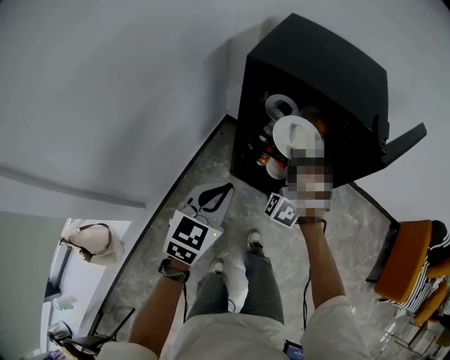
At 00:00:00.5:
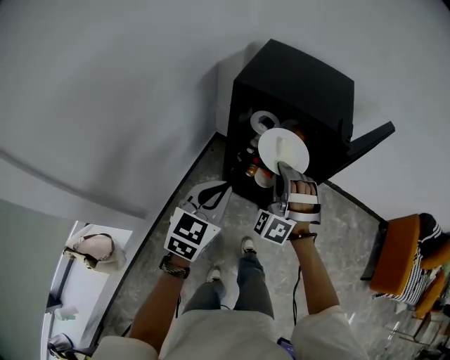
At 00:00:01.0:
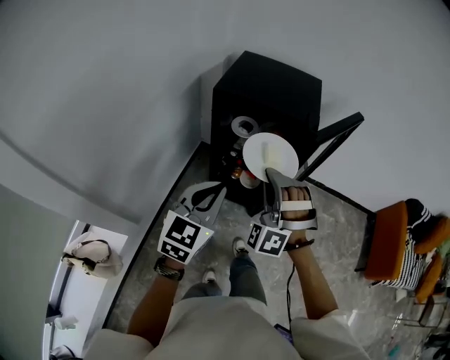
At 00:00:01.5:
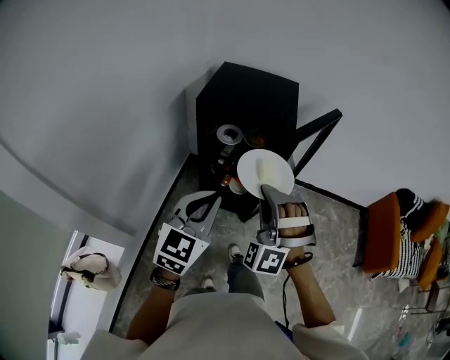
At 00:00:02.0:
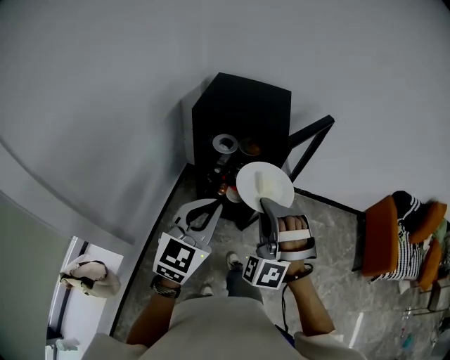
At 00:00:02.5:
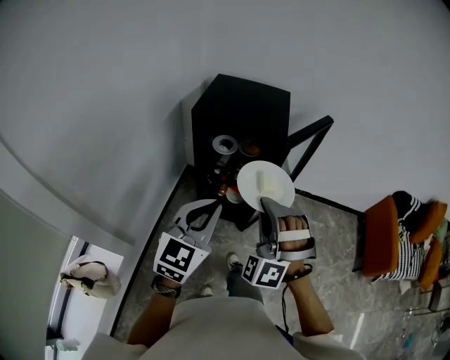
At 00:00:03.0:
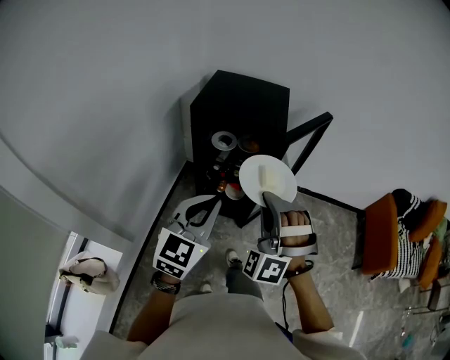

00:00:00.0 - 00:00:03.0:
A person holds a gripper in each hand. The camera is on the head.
00:00:00.0 - 00:00:01.5: The right gripper goes some 35 cm backward, upward and to the right. Meanwhile the left gripper moves upward, backward and to the right, approximately 25 cm.
00:00:01.5 - 00:00:03.0: There are only small adjustments of the grippers.

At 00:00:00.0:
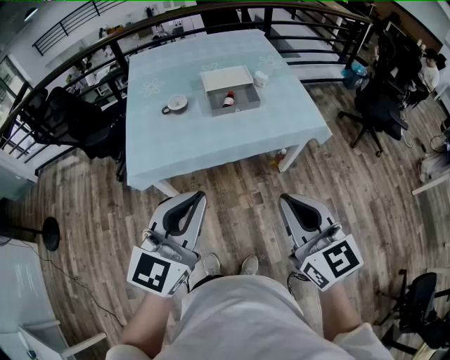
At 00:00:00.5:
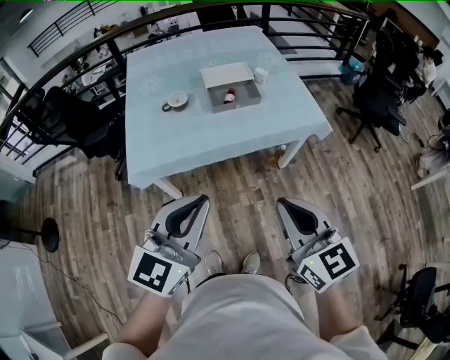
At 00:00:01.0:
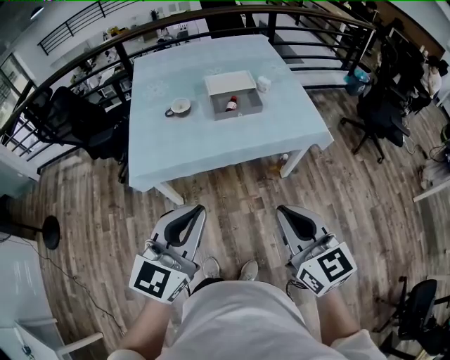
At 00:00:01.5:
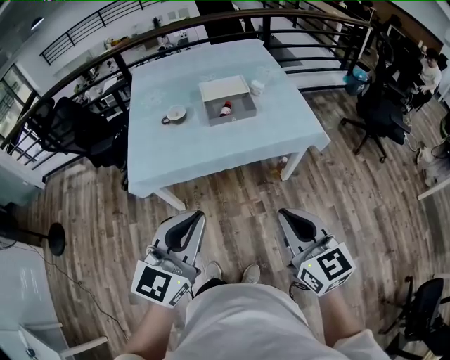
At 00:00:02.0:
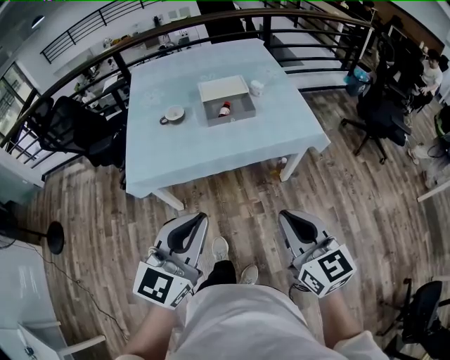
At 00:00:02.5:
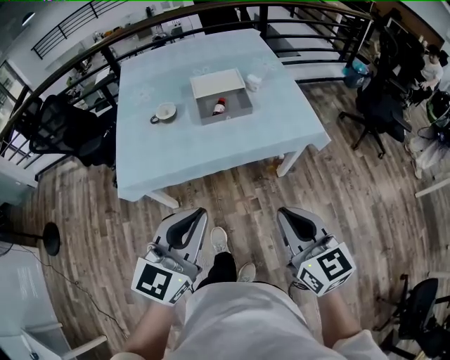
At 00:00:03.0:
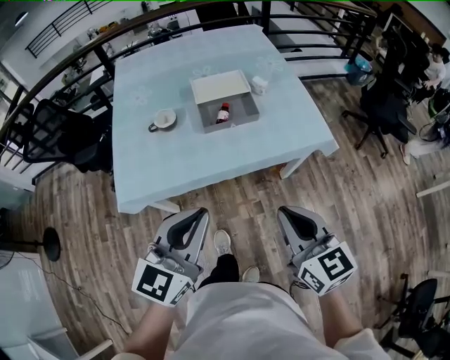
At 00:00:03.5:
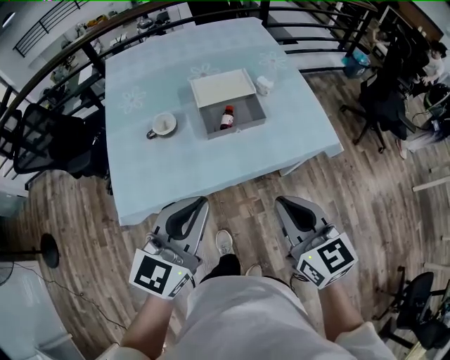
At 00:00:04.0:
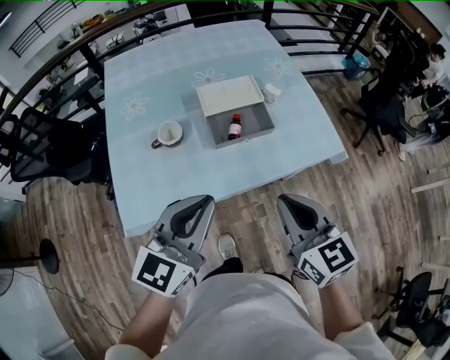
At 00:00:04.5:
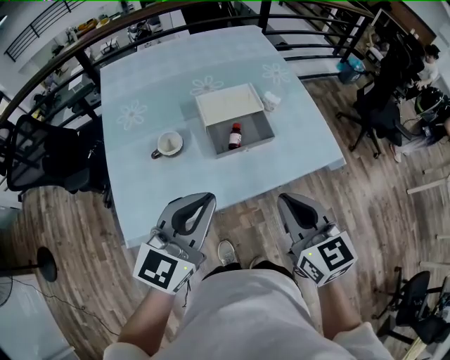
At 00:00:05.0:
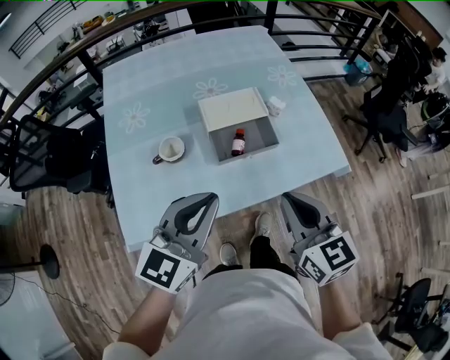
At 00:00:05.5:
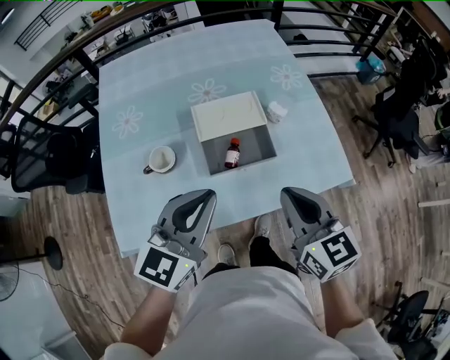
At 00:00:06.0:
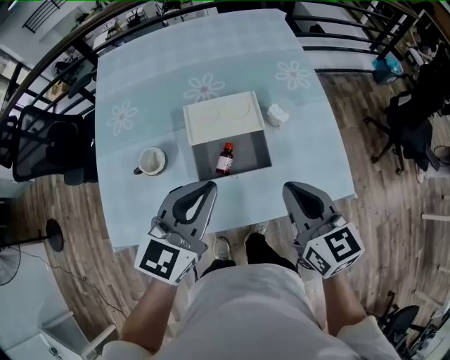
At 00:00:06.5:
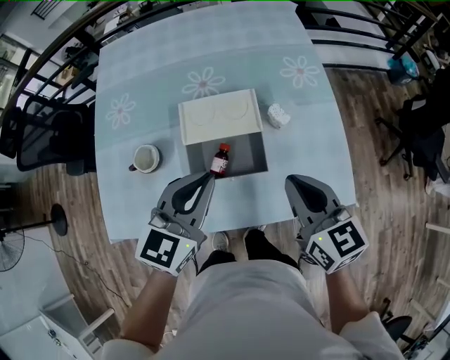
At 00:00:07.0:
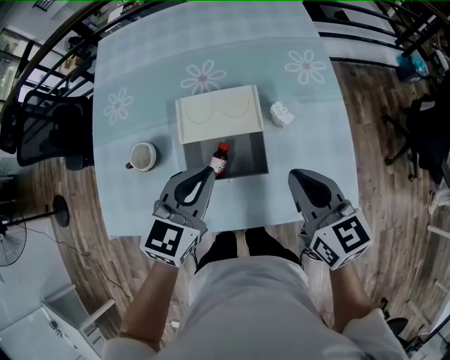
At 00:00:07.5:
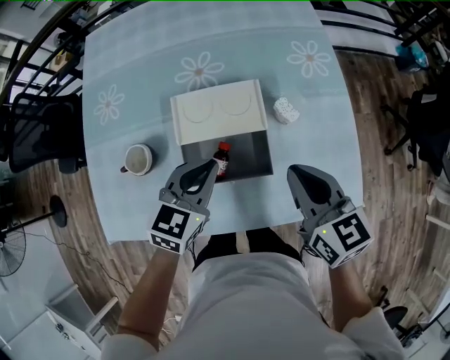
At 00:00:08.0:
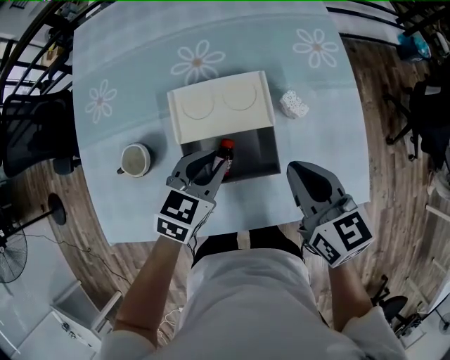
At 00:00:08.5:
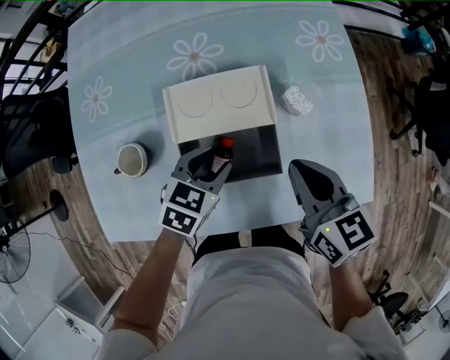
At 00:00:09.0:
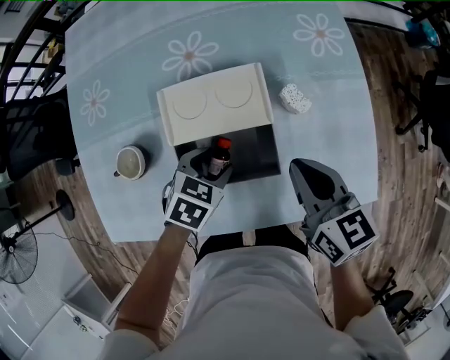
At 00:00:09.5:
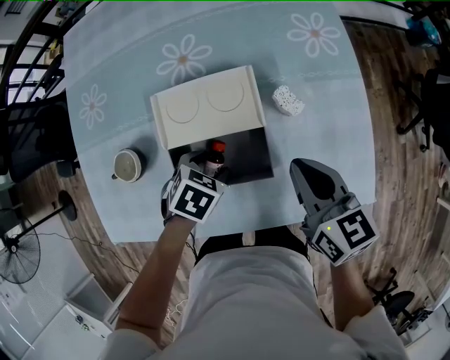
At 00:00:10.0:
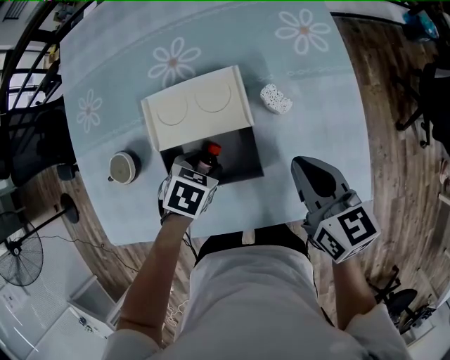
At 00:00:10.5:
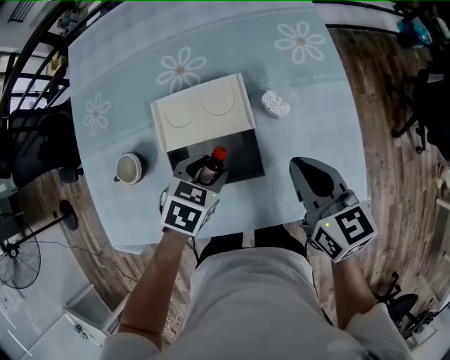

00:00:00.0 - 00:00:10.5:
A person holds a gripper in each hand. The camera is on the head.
00:00:00.0 - 00:00:02.0: The right gripper goes roughly 5 cm to the right. Meanwhile the left gripper shifts by some 5 cm.
00:00:02.0 - 00:00:04.0: The right gripper goes about 30 cm forward and to the left, while the left gripper goes some 30 cm forward.
00:00:04.0 - 00:00:06.5: Both grippers travel together forward and to the right, approximately 30 cm.
00:00:06.5 - 00:00:08.5: The left gripper goes approximately 20 cm downward, points its fingers some 30 degrees further downward, and opens, while the right gripper is displaced downward and forward by some 10 cm.
00:00:08.5 - 00:00:10.5: The right gripper moves about 5 cm.

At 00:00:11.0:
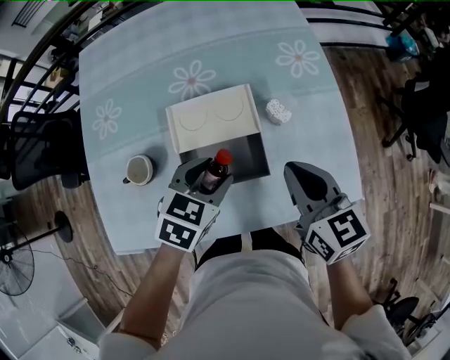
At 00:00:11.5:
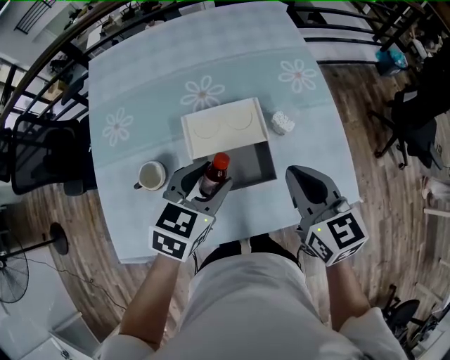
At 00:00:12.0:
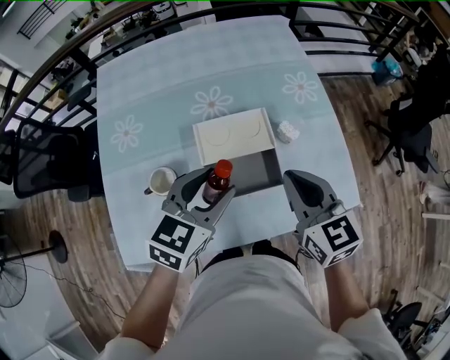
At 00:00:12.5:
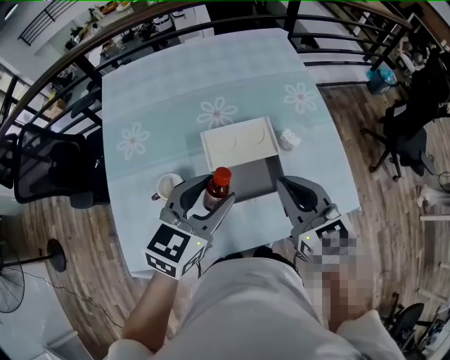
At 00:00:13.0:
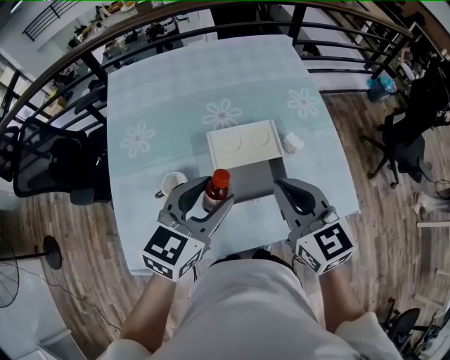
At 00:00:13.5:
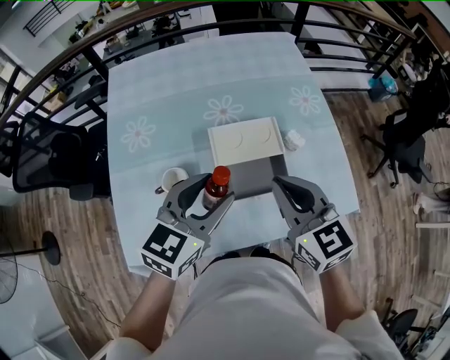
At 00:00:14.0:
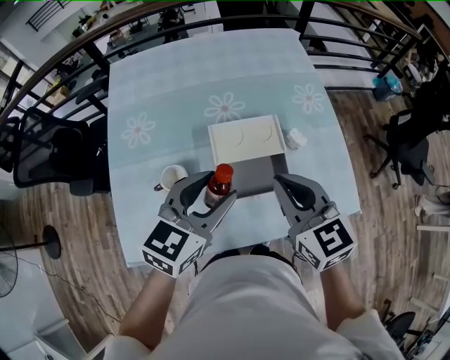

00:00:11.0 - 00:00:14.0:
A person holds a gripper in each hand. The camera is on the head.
00:00:11.0 - 00:00:12.5: The right gripper goes about 15 cm to the left and upward. Meanwhile the left gripper is displaced upward and to the left by about 15 cm, and rotates roughly 30 degrees.
00:00:12.5 - 00:00:14.0: The grippers move only a little.

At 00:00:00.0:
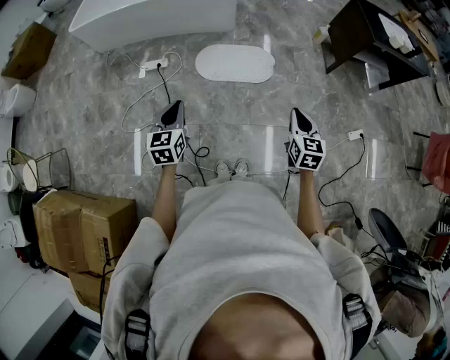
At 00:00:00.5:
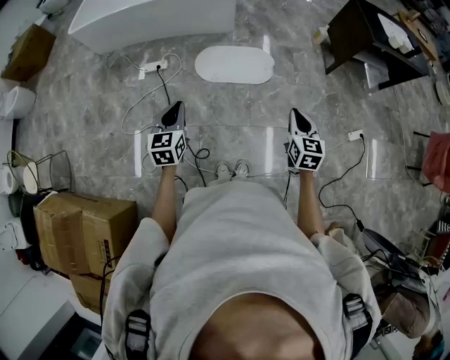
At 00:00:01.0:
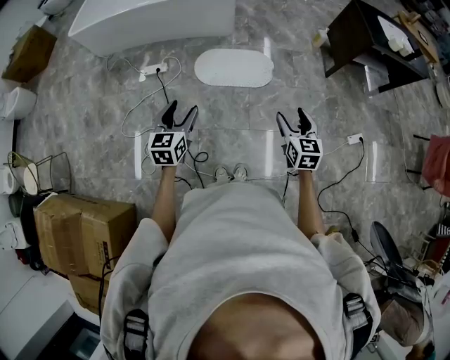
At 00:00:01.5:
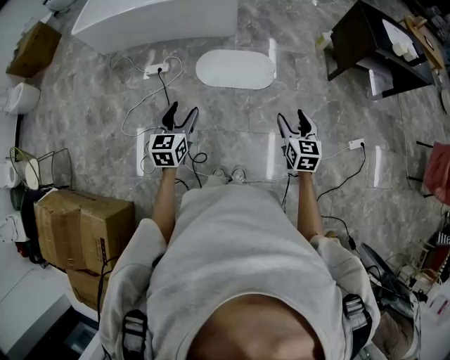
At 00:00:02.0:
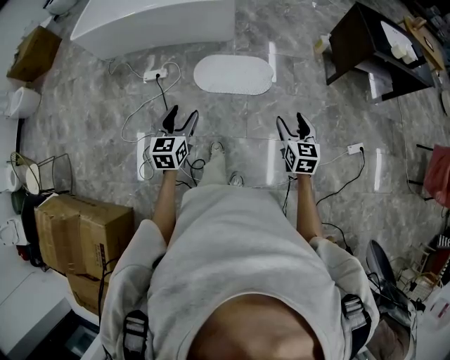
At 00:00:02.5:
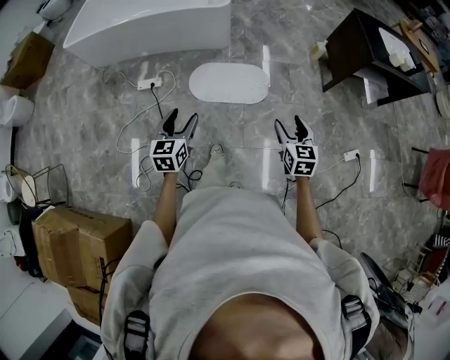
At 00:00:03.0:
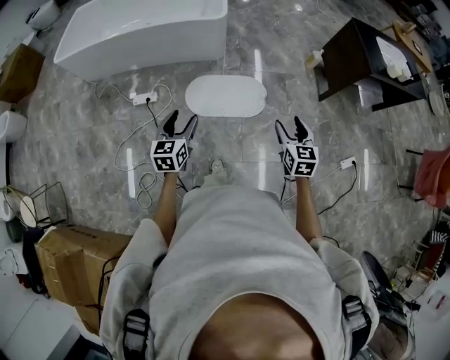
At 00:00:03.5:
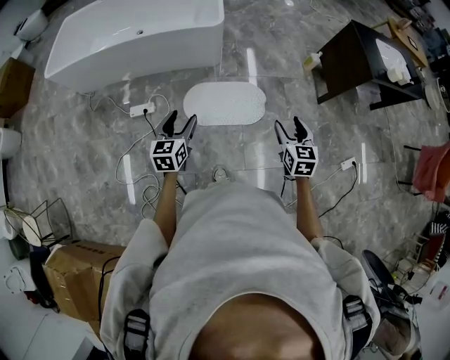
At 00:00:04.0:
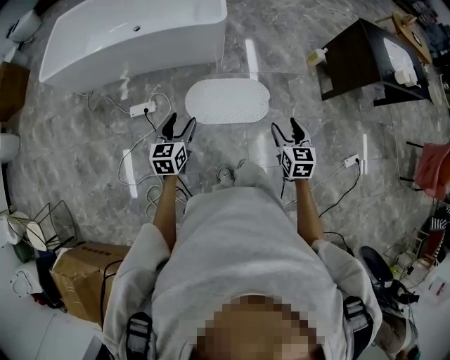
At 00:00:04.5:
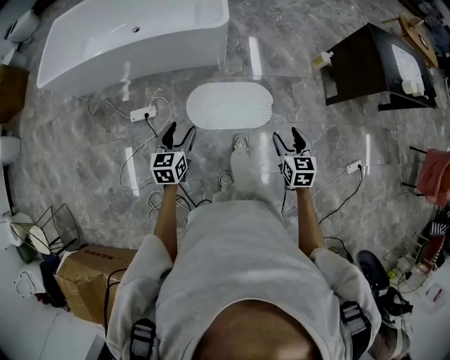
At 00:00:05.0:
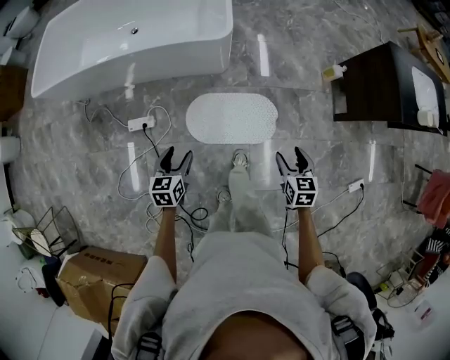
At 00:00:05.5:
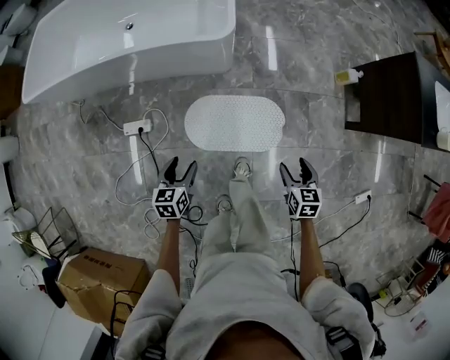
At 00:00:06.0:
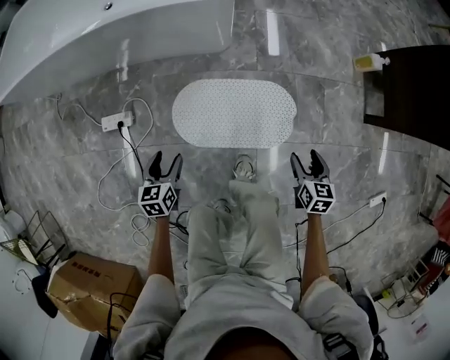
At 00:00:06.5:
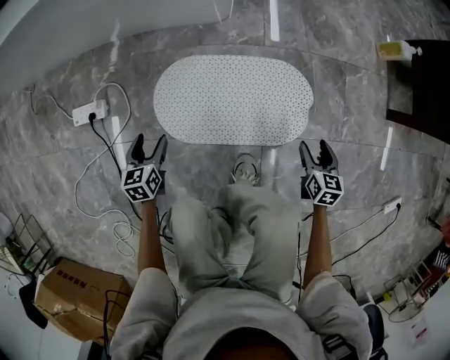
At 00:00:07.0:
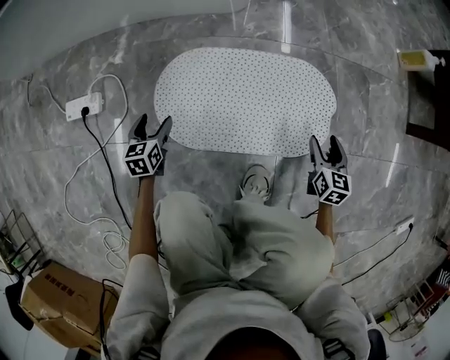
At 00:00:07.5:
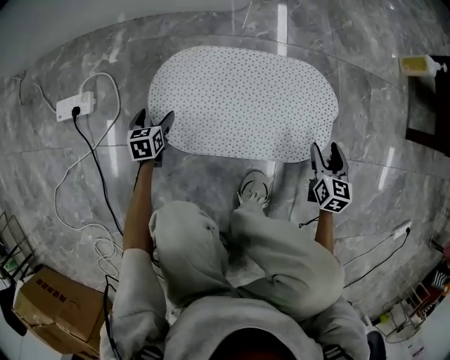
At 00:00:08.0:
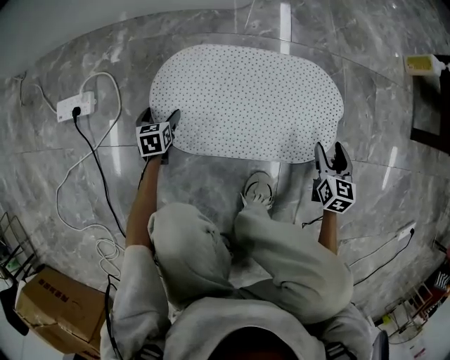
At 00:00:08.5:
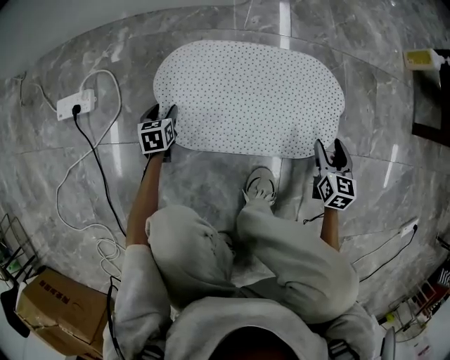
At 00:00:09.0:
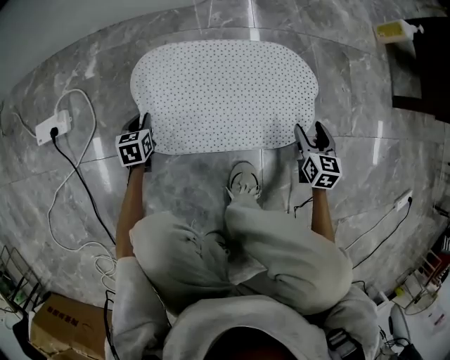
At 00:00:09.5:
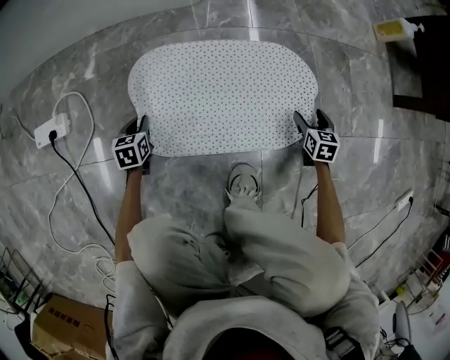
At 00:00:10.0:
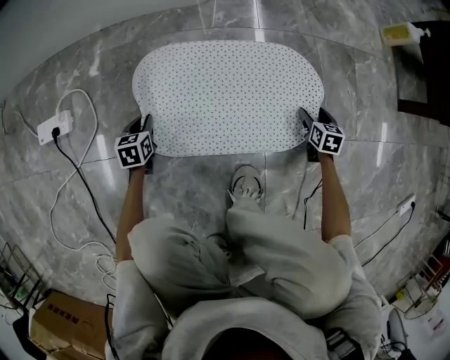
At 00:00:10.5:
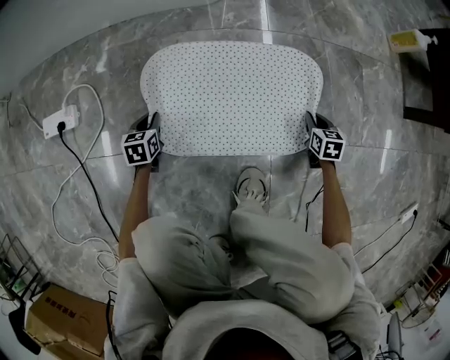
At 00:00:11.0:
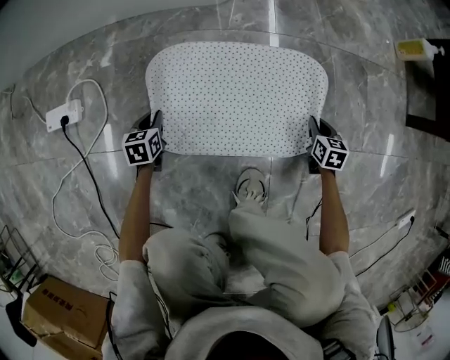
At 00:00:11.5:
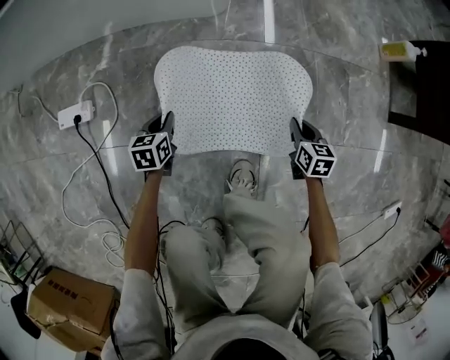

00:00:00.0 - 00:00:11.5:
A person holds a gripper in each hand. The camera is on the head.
00:00:00.0 - 00:00:02.0: The left gripper travels to the right and forward by roughly 10 cm, and opens its fingers. Meanwhile the right gripper heads forward, covering roughly 5 cm, and opens up.
00:00:02.0 - 00:00:04.0: The right gripper shifts roughly 30 cm forward and to the left; the left gripper shifts roughly 30 cm forward.
00:00:04.0 - 00:00:06.0: The left gripper travels downward by roughly 40 cm, and changes its angle by roughly 20 degrees. The right gripper moves downward and forward, roughly 50 cm.
00:00:06.0 - 00:00:07.5: Both grippers travel together downward, some 40 cm.
00:00:07.5 - 00:00:09.5: The left gripper closes up; the right gripper moves downward and to the right, some 10 cm.
00:00:09.5 - 00:00:11.5: The right gripper goes some 15 cm upward and to the left, and closes its fingers. Meanwhile the left gripper shifts roughly 15 cm upward and to the right.
